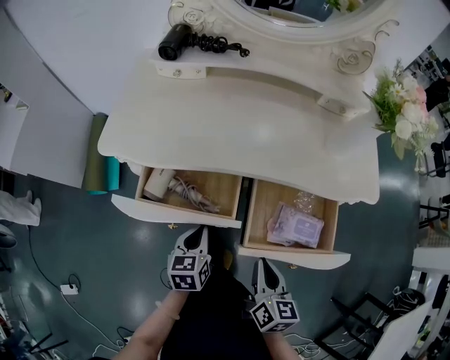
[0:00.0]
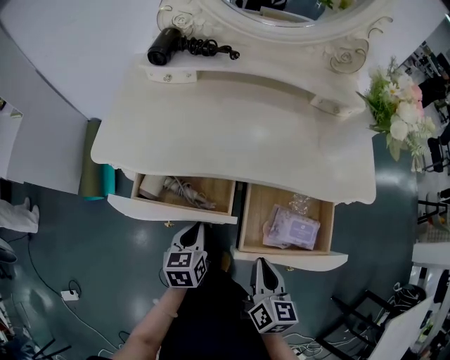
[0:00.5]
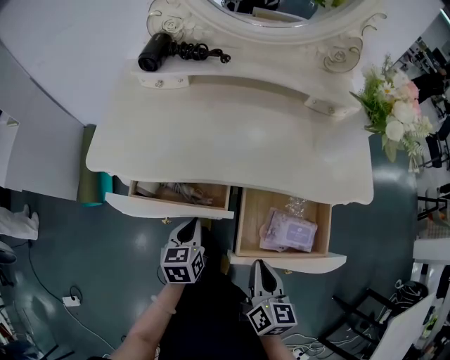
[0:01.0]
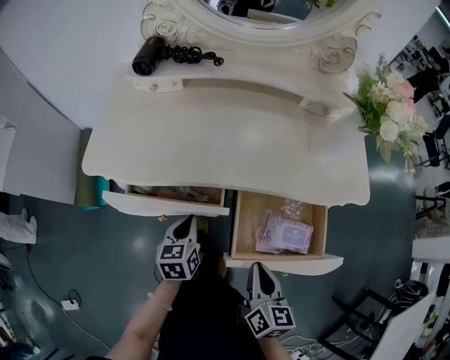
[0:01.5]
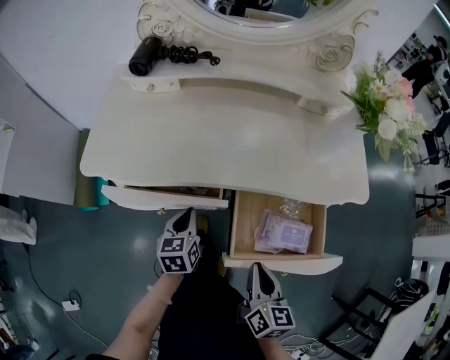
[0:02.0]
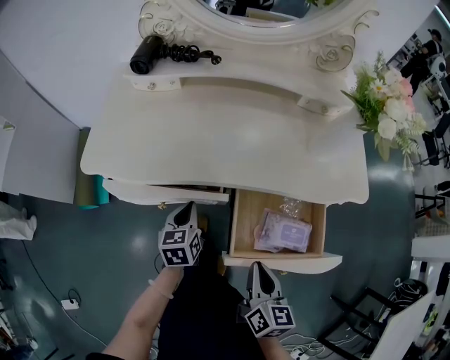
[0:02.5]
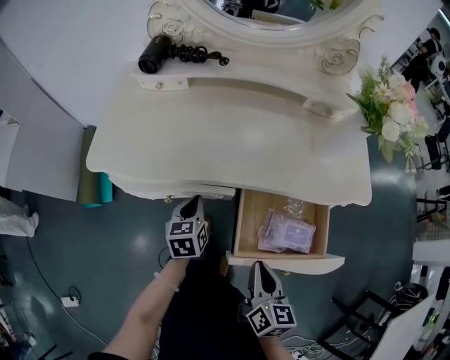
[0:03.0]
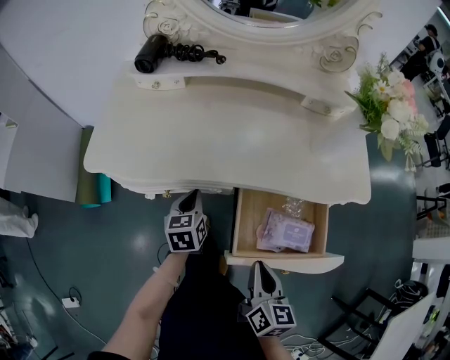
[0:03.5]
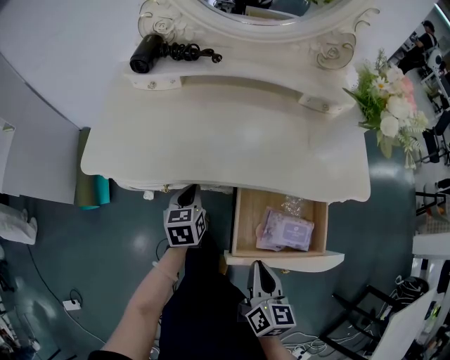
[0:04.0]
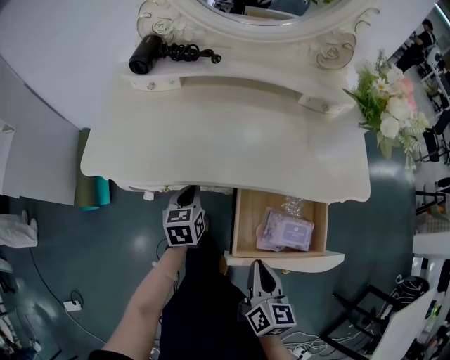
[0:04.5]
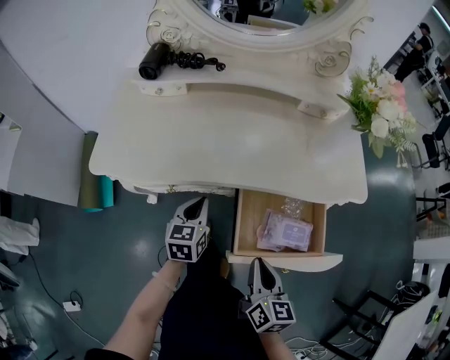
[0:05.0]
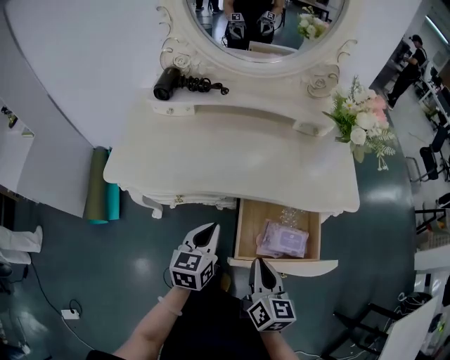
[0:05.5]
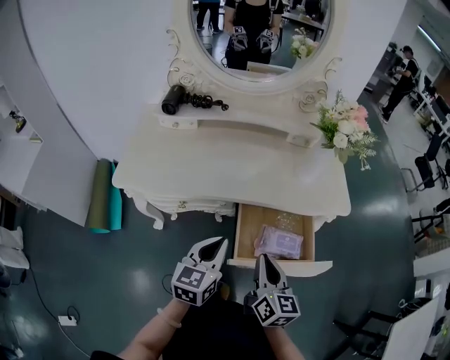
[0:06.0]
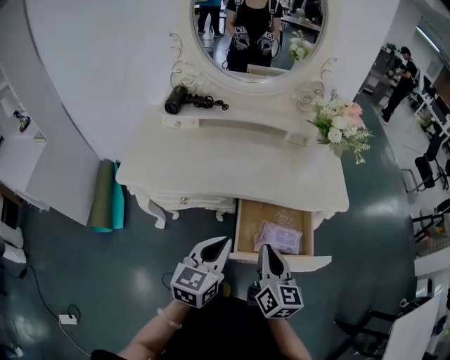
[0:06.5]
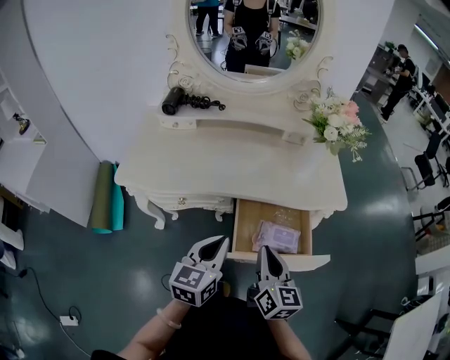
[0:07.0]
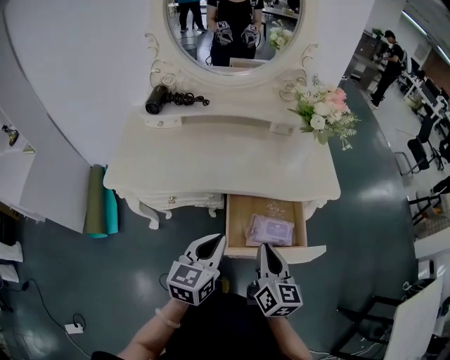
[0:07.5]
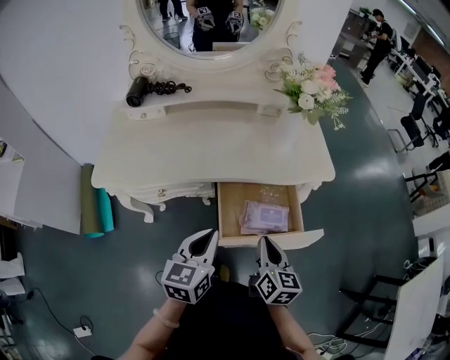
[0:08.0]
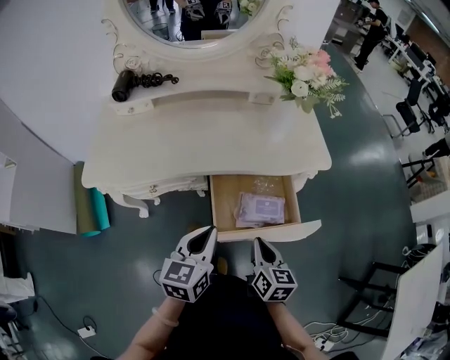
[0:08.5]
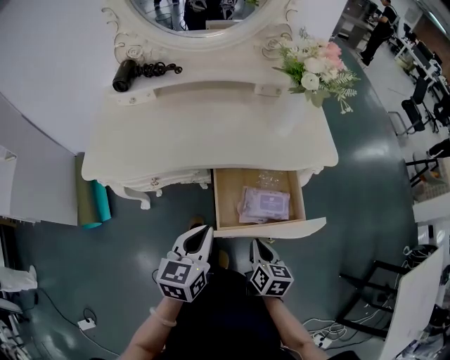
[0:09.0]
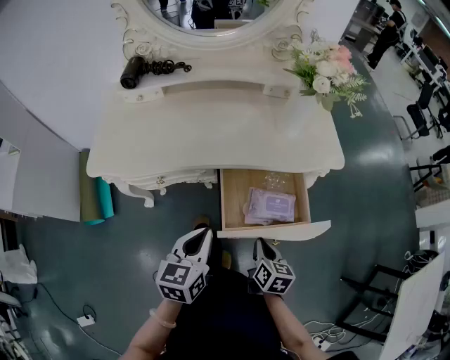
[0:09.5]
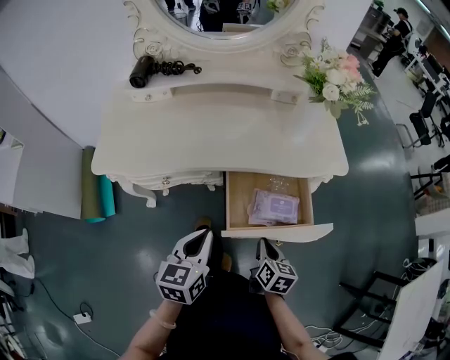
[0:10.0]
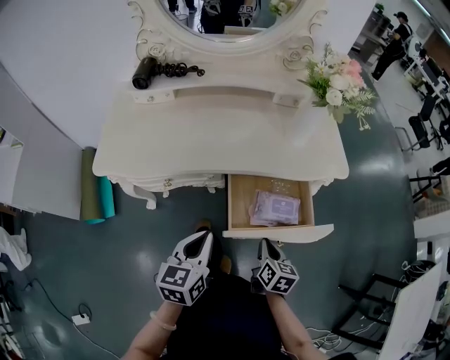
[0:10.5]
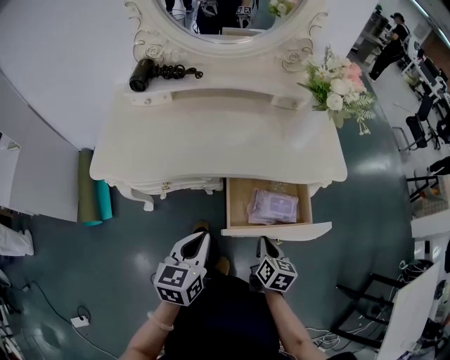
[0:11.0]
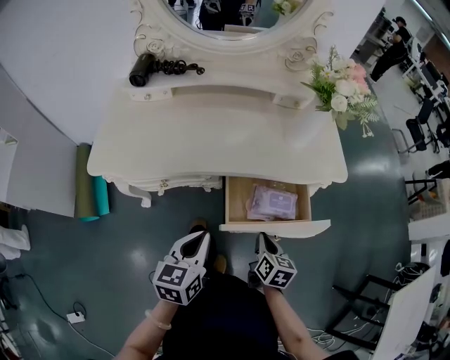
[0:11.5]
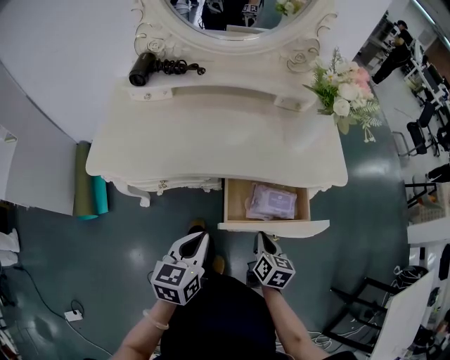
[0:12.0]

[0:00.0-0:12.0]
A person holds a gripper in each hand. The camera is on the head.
0:00.0 to 0:02.0: The left gripper shifts some 10 cm forward.
0:02.0 to 0:04.0: The left gripper shifts some 5 cm forward.
0:04.0 to 0:06.0: The left gripper goes approximately 25 cm upward, backward and to the right, and changes its angle by roughly 30 degrees. Meanwhile the right gripper goes some 10 cm upward.
0:06.0 to 0:08.0: The right gripper moves to the right, about 5 cm.
0:08.0 to 0:10.0: The right gripper travels downward by some 10 cm. Meanwhile the left gripper moves about 5 cm.
0:10.0 to 0:12.0: The grippers move only a little.

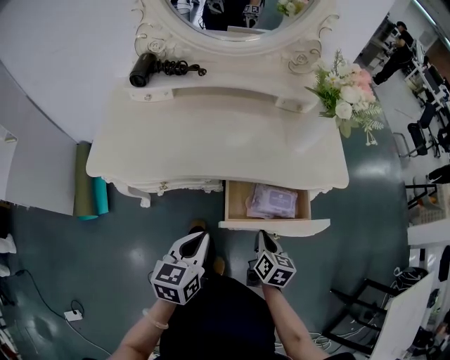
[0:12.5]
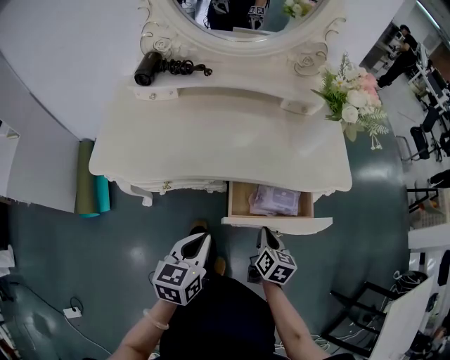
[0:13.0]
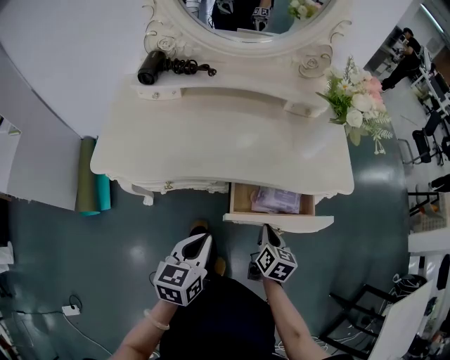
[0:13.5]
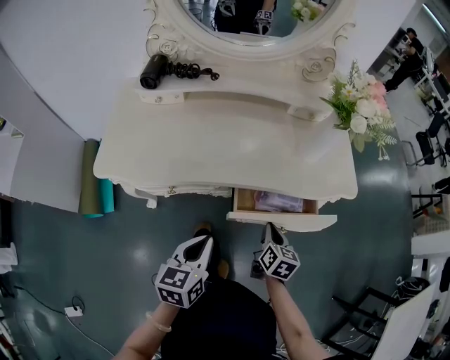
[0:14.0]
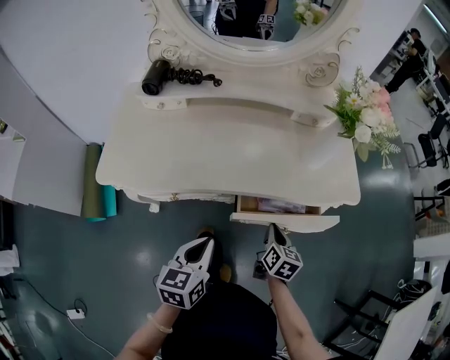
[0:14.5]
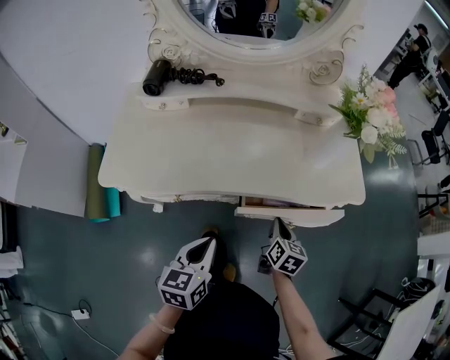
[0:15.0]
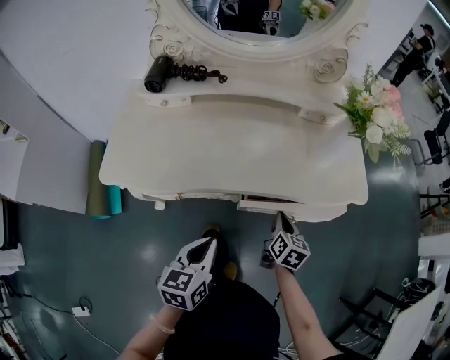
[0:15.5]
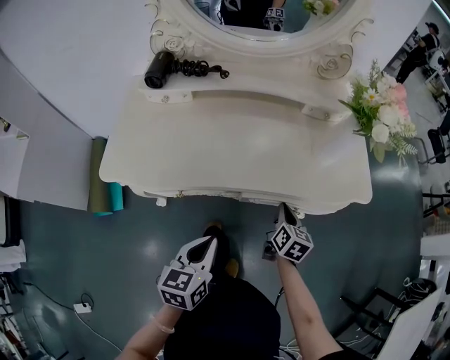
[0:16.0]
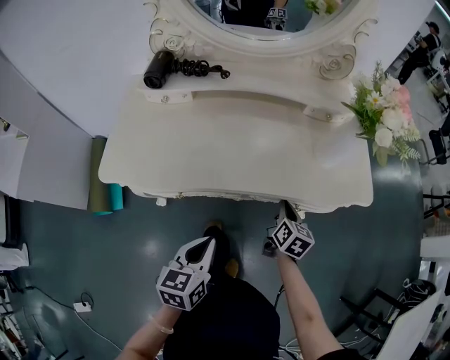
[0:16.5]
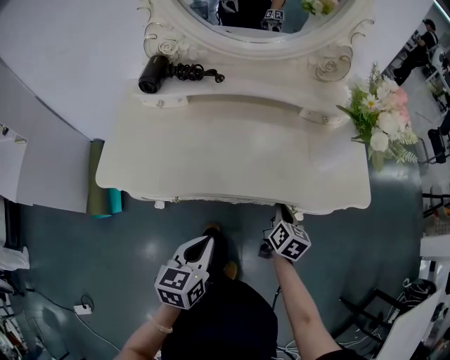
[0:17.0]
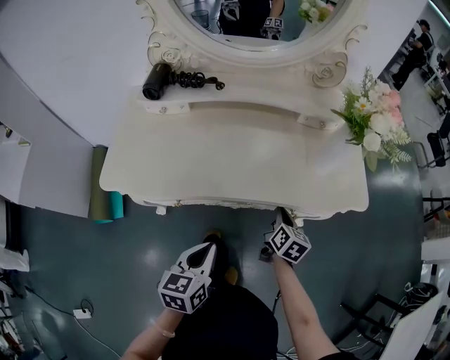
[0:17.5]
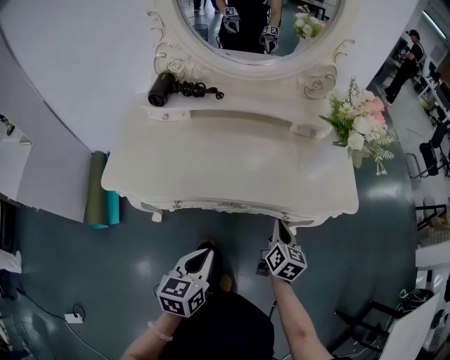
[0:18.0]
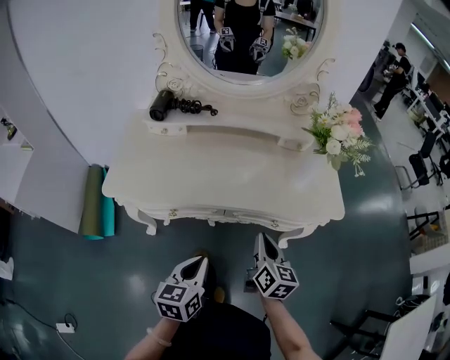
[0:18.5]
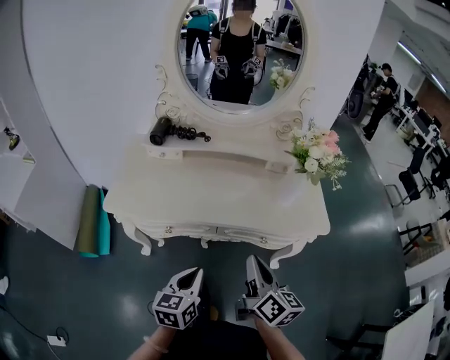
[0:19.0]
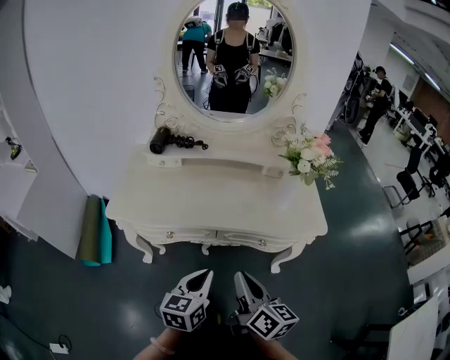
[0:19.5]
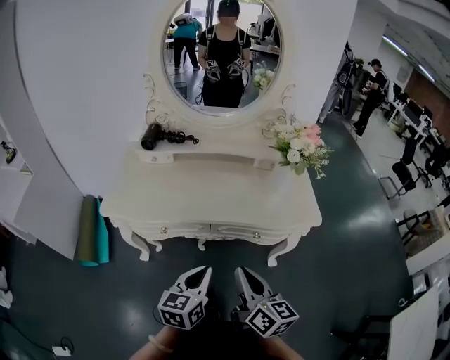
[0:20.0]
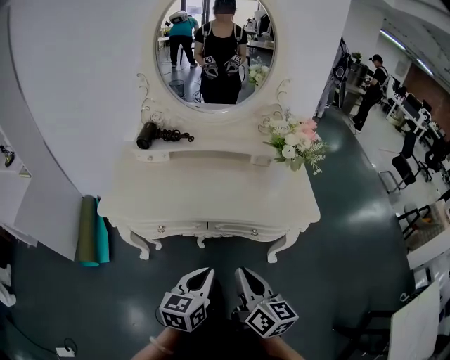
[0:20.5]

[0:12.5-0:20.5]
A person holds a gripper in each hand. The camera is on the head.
0:12.5 to 0:14.5: The right gripper heads forward, covering roughly 5 cm.
0:14.5 to 0:16.5: The right gripper moves forward, approximately 10 cm.
0:16.5 to 0:18.5: The left gripper changes place by about 5 cm. The right gripper is displaced upward and backward by approximately 15 cm.
0:18.5 to 0:20.5: The left gripper goes some 10 cm to the right and upward. Meanwhile the right gripper heads backward and upward, covering about 15 cm.

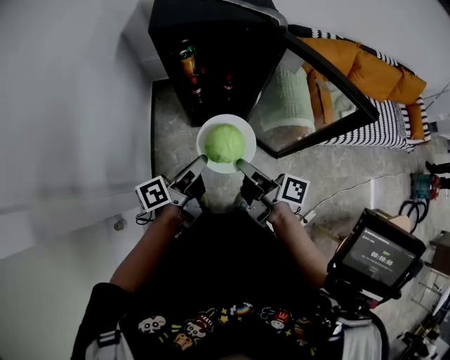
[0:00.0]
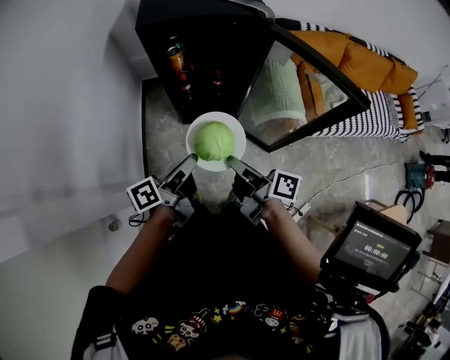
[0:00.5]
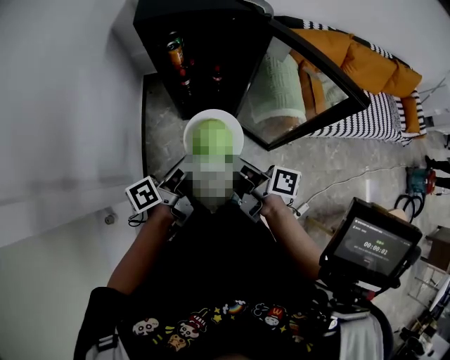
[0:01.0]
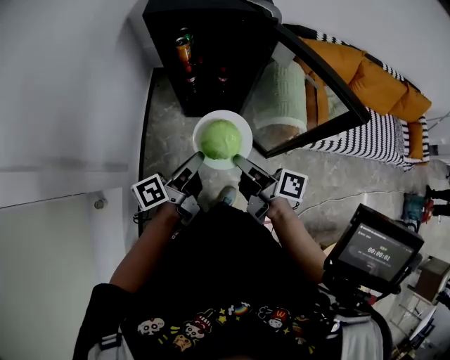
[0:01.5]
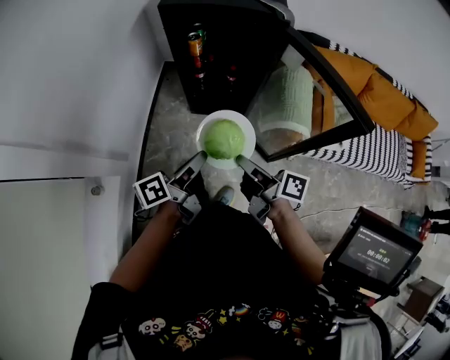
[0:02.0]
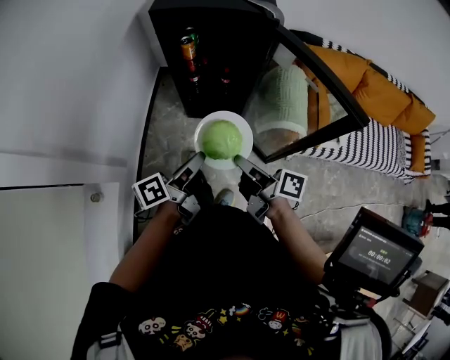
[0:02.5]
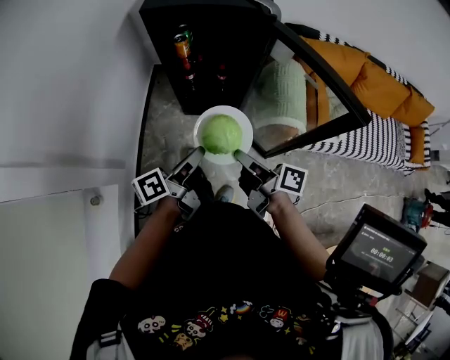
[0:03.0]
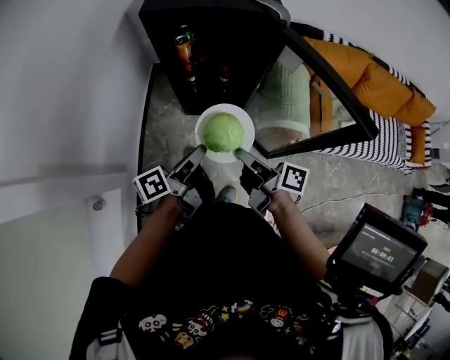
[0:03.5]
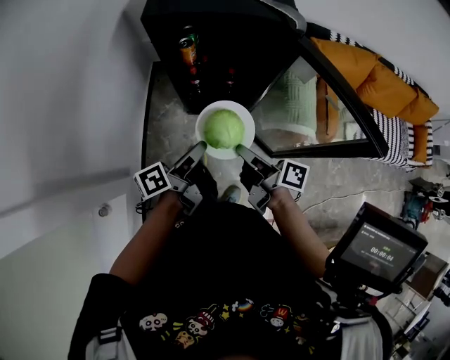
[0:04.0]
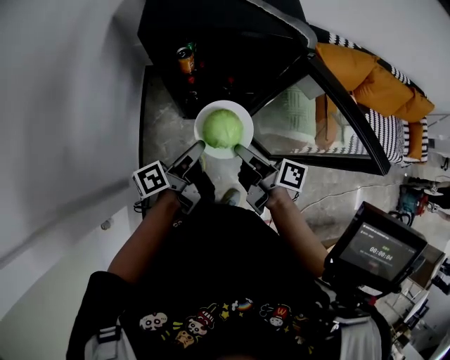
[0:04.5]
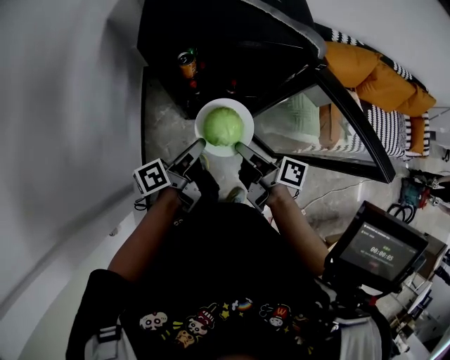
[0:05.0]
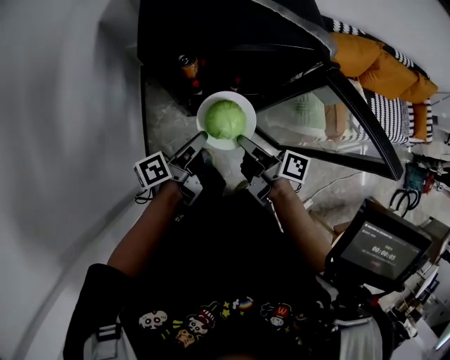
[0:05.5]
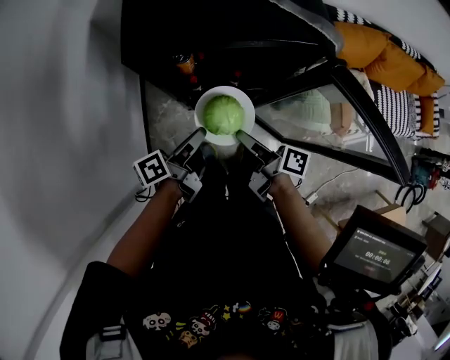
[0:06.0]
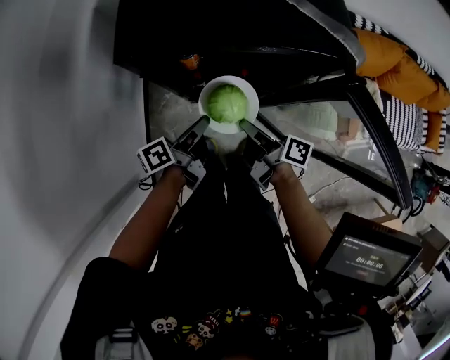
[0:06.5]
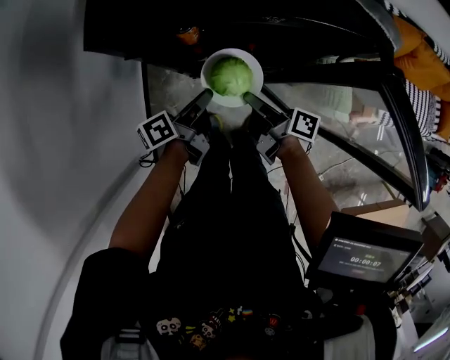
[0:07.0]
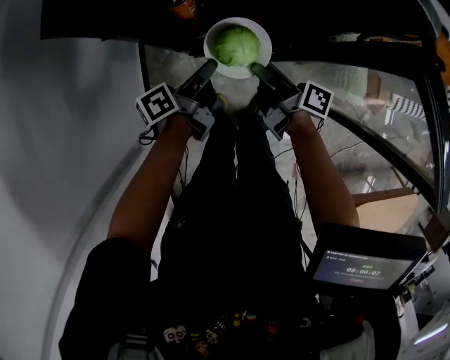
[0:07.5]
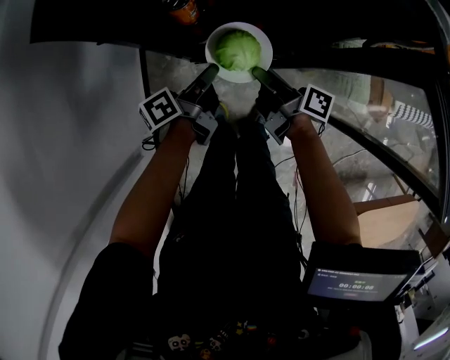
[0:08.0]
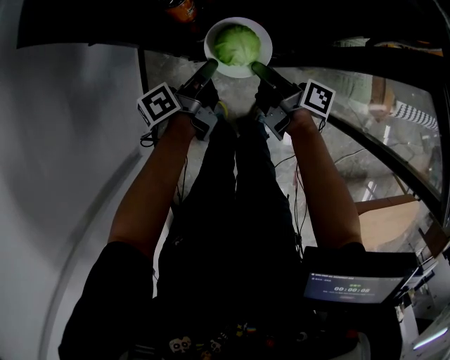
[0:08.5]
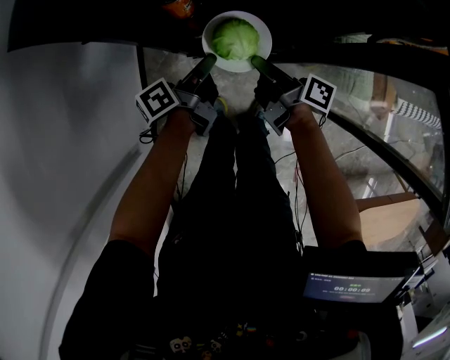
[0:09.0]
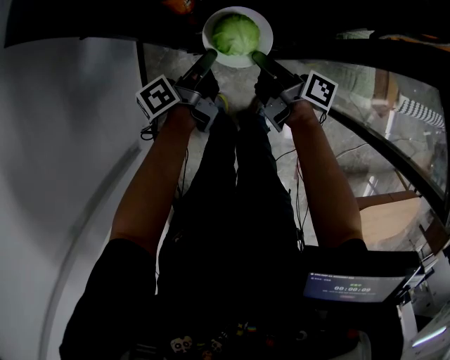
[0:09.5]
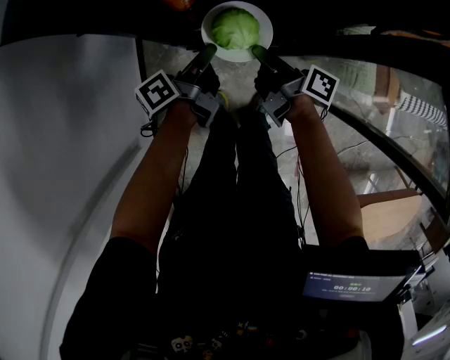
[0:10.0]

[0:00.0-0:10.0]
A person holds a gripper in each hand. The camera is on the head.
0:00.0 to 0:08.0: The grippers move only a little.
0:08.0 to 0:10.0: Both grippers stay about where they are.
